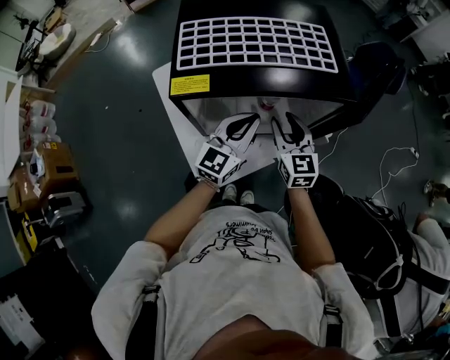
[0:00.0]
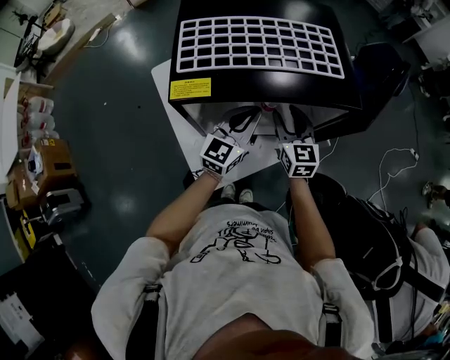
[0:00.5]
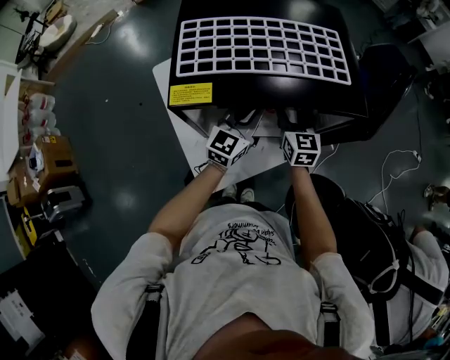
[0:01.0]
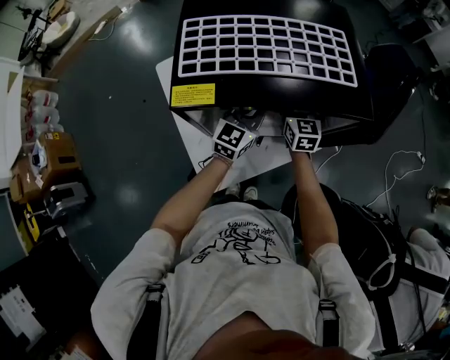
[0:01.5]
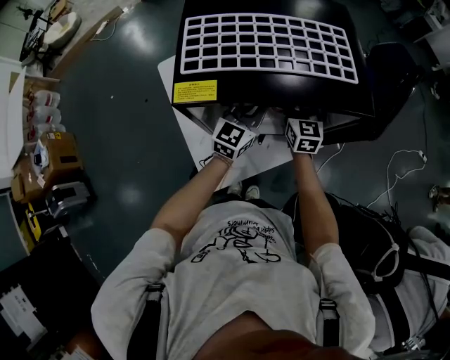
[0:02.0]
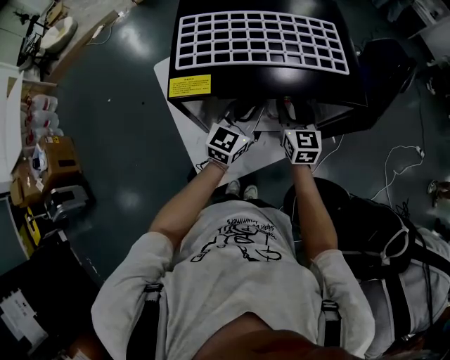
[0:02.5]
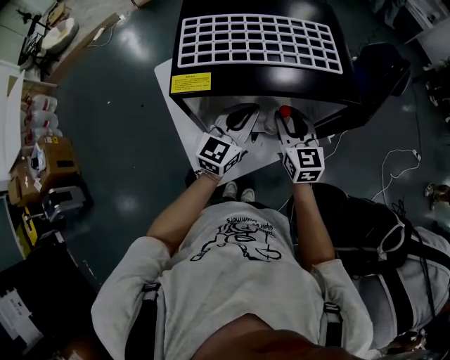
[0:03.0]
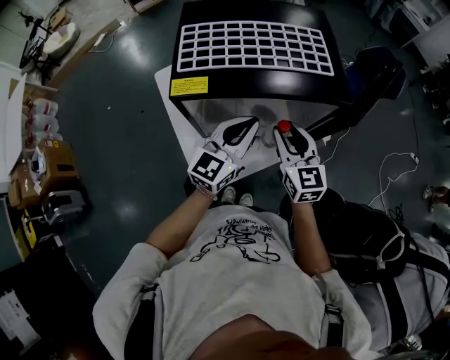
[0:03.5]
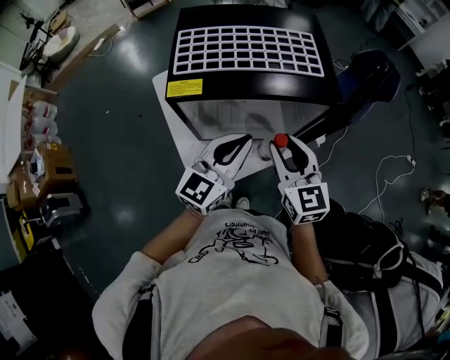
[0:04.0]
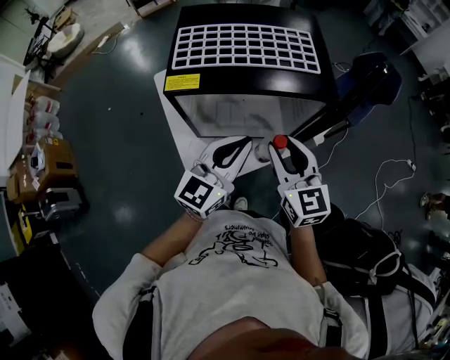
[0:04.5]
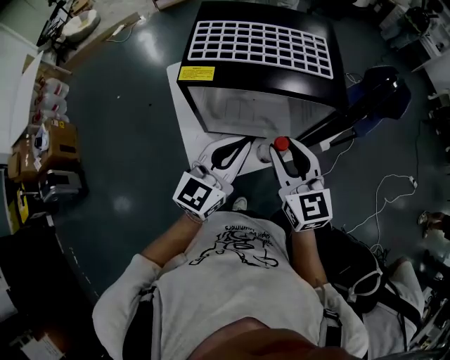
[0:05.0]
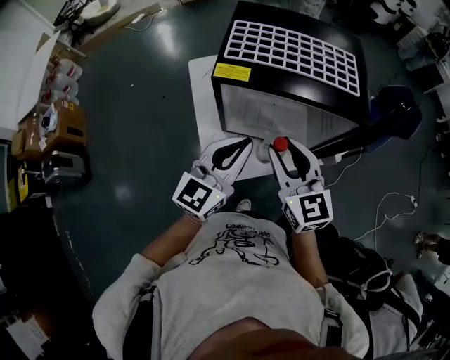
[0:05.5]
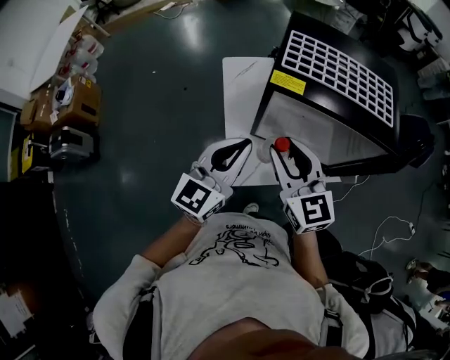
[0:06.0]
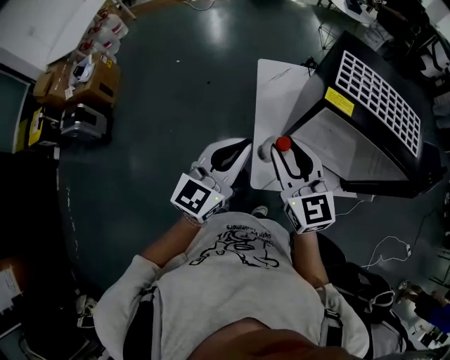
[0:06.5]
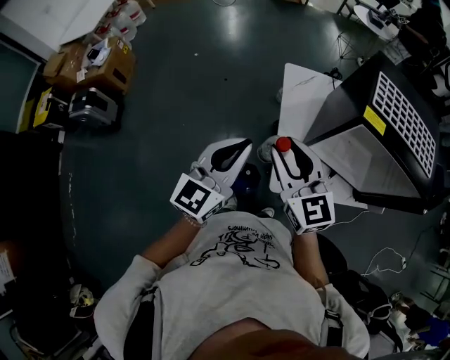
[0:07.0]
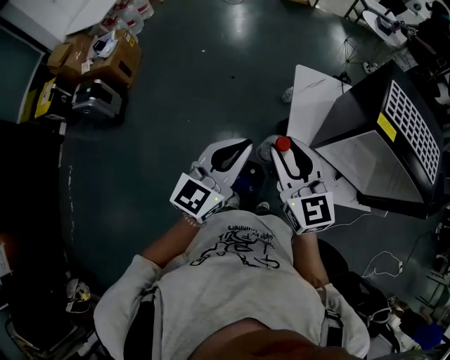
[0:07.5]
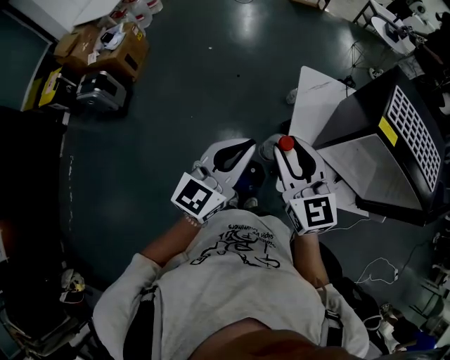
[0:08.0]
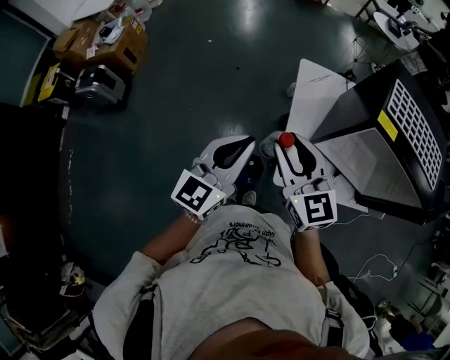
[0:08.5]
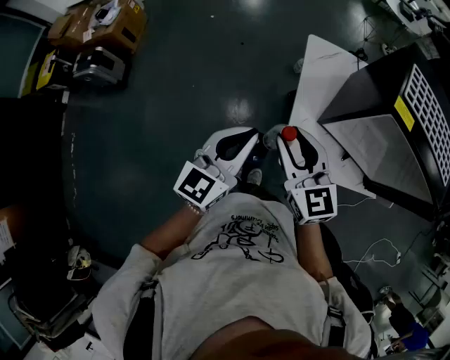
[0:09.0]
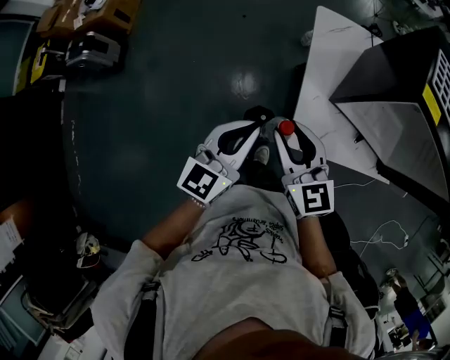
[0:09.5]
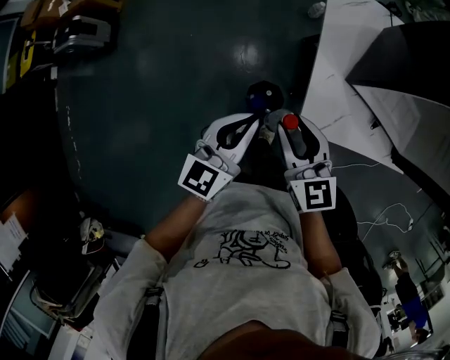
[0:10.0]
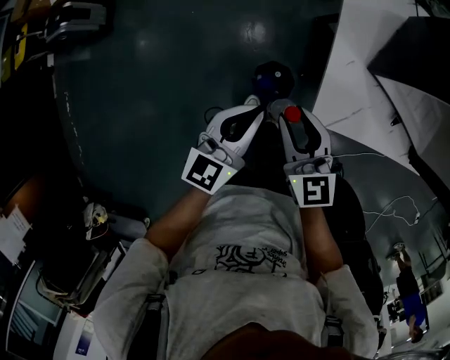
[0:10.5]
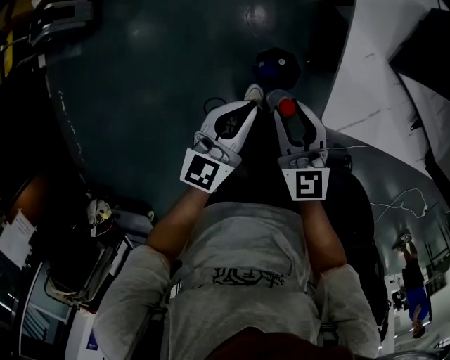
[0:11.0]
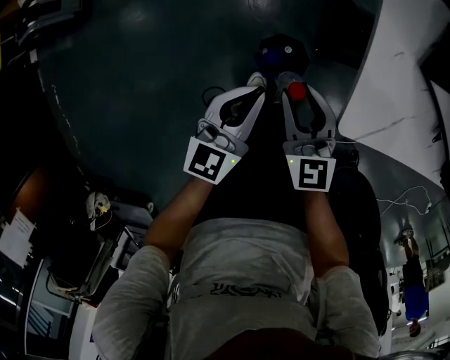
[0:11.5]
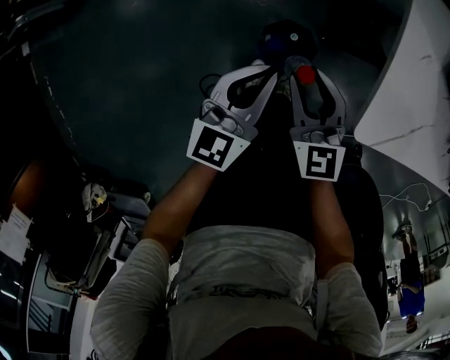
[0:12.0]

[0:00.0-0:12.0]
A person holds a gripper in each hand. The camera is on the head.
0:00.0 to 0:02.0: Both grippers travel together forward and downward, about 10 cm.
0:02.0 to 0:04.0: The grippers both shift backward and upward by approximately 20 cm.
0:04.0 to 0:06.0: Both grippers travel together to the left, some 20 cm. The left gripper changes its angle by some 20 degrees. The right gripper swivels approximately 20 degrees.
0:06.0 to 0:08.0: Both grippers move to the left, about 25 cm.
0:08.0 to 0:10.0: The two grippers go approximately 20 cm downward.
0:10.0 to 0:12.0: The grippers both shift downward by approximately 30 cm.

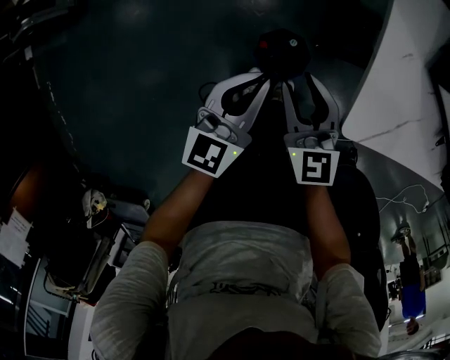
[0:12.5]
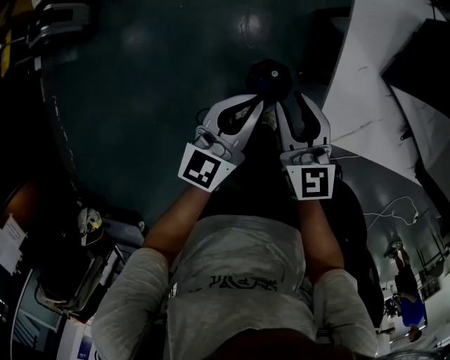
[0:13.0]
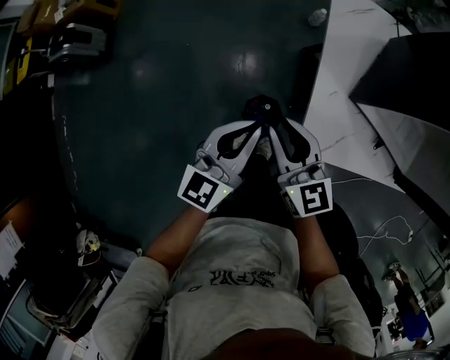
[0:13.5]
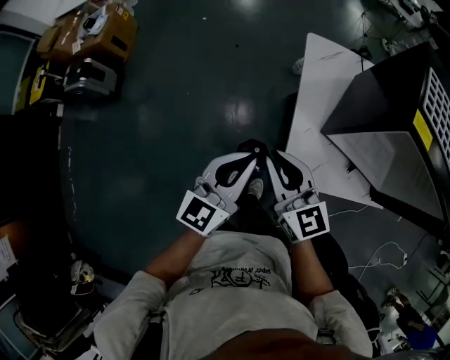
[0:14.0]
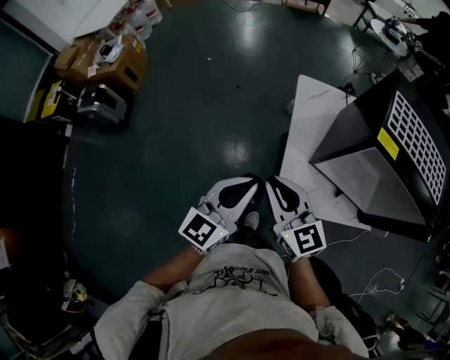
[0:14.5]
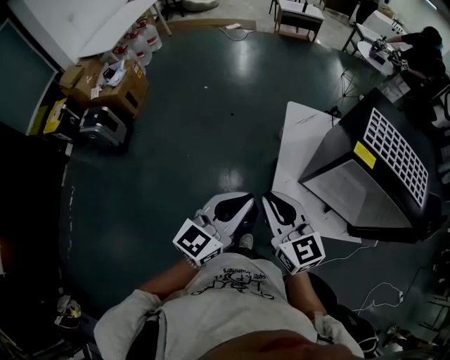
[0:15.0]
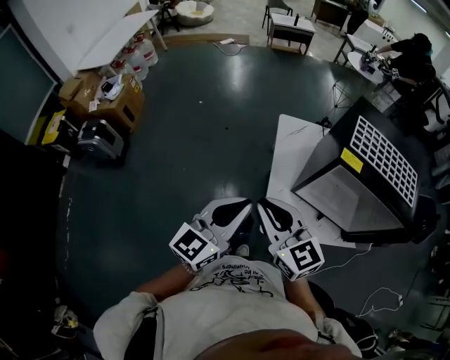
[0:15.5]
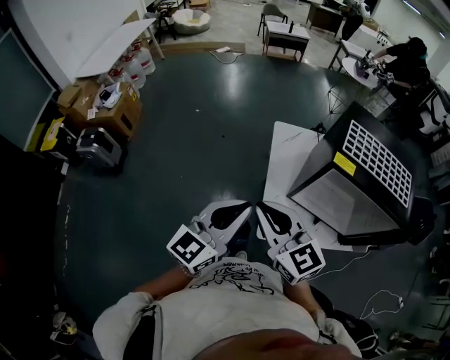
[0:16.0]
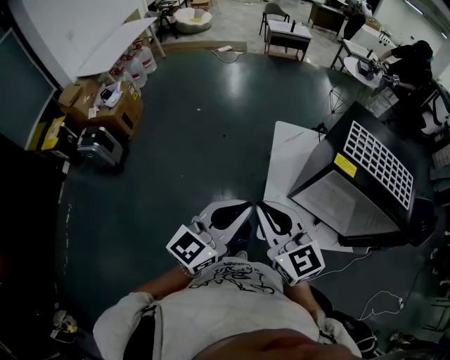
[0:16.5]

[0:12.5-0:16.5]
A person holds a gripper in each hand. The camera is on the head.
0:12.5 to 0:14.5: Both grippers travel together upward, some 40 cm. The right gripper closes up.
0:14.5 to 0:16.5: The grippers both shift upward by some 10 cm.

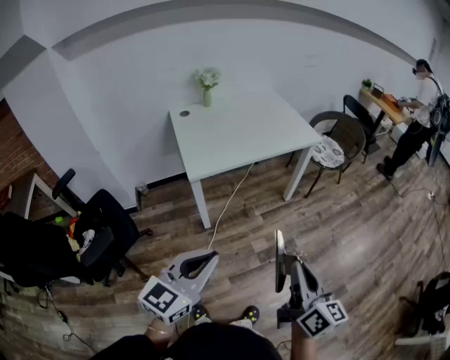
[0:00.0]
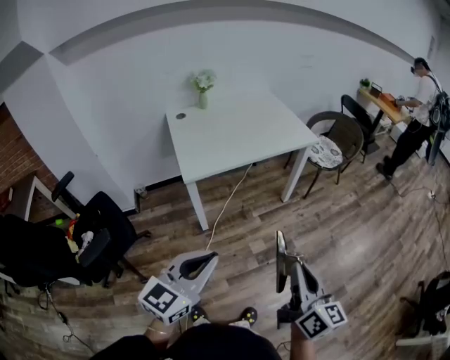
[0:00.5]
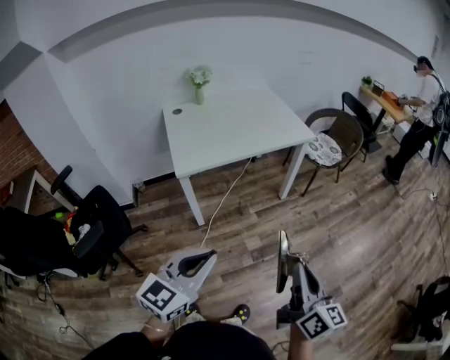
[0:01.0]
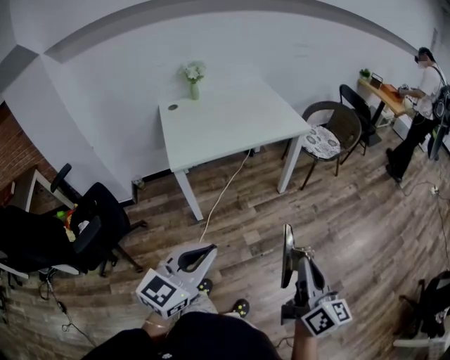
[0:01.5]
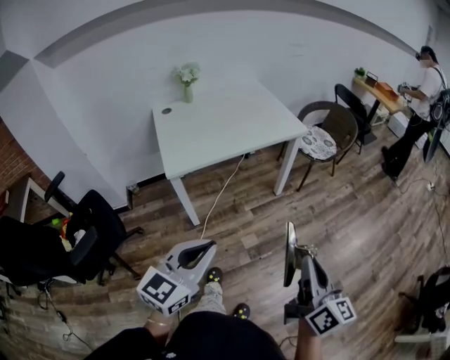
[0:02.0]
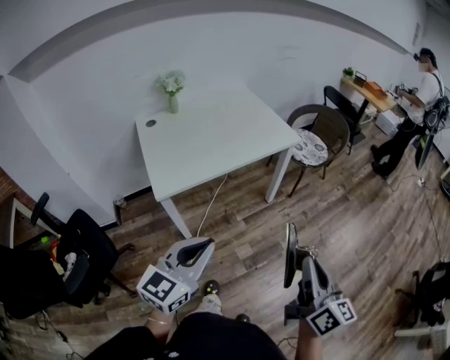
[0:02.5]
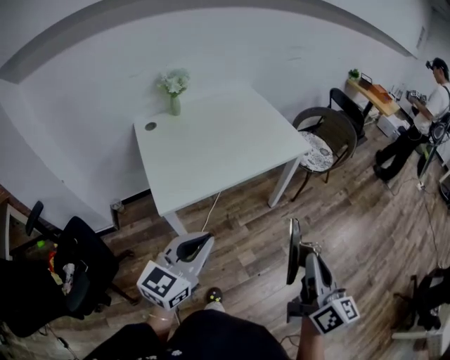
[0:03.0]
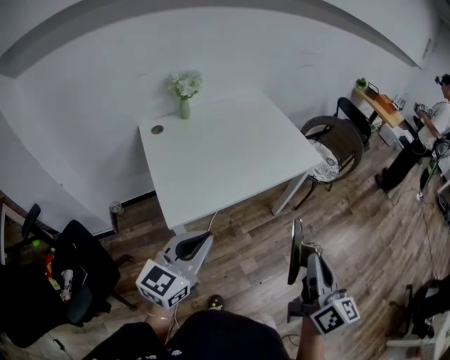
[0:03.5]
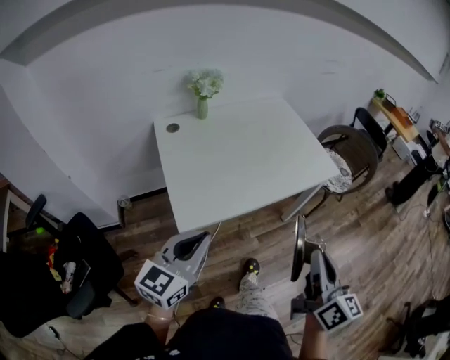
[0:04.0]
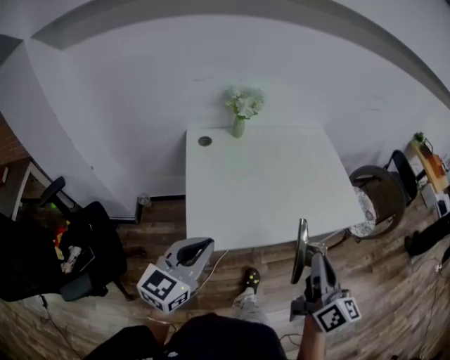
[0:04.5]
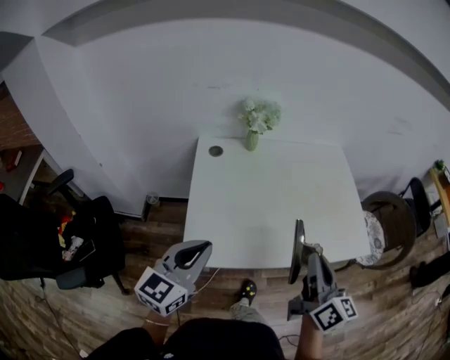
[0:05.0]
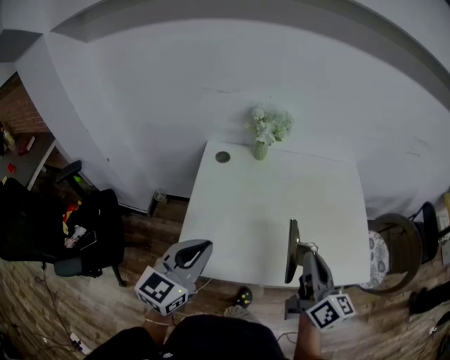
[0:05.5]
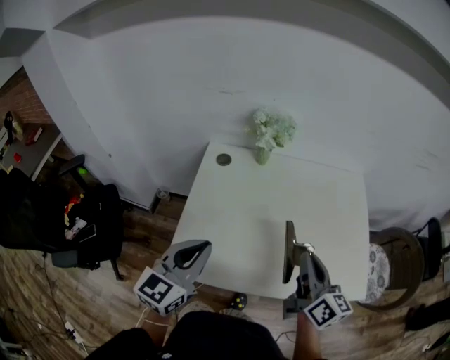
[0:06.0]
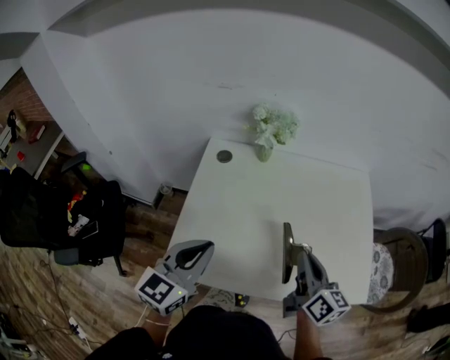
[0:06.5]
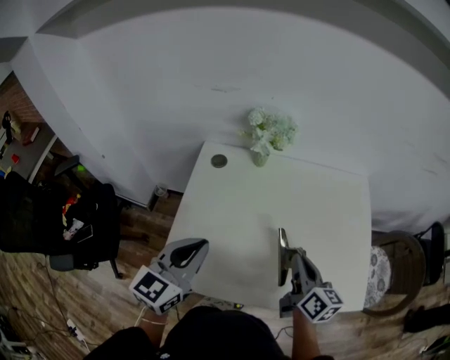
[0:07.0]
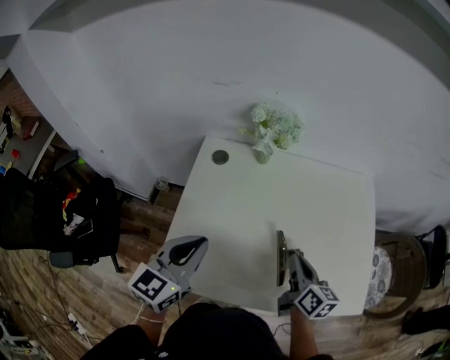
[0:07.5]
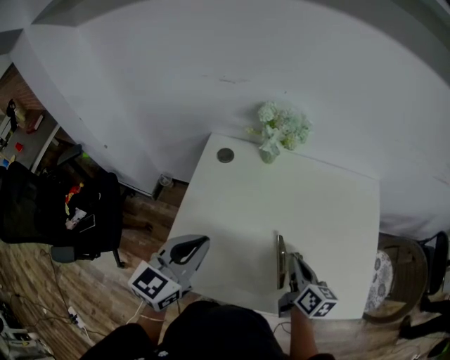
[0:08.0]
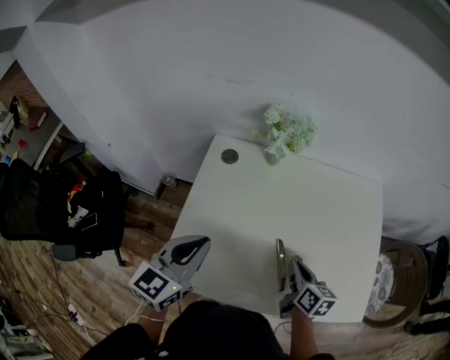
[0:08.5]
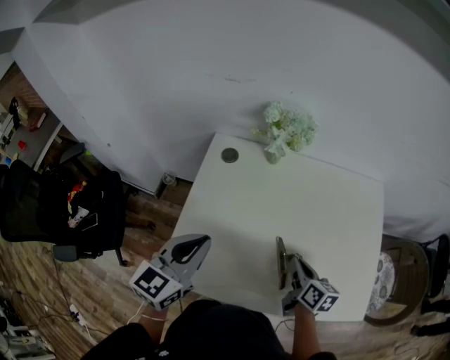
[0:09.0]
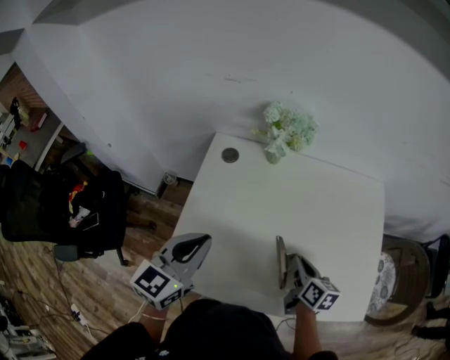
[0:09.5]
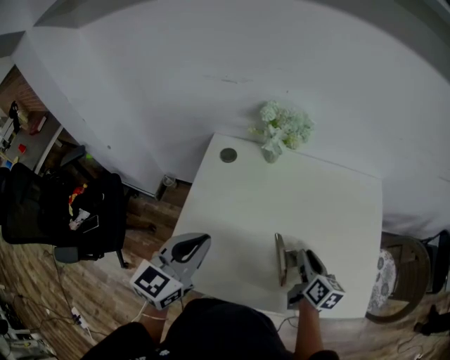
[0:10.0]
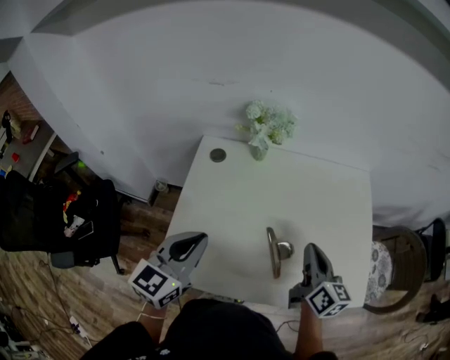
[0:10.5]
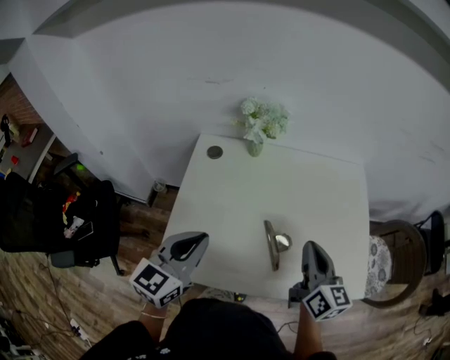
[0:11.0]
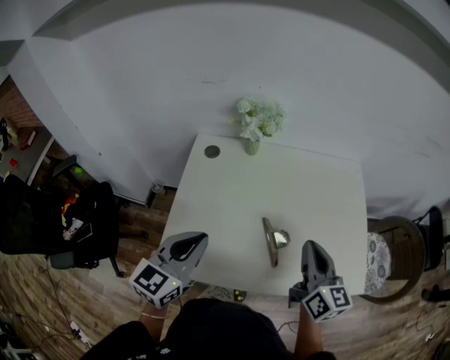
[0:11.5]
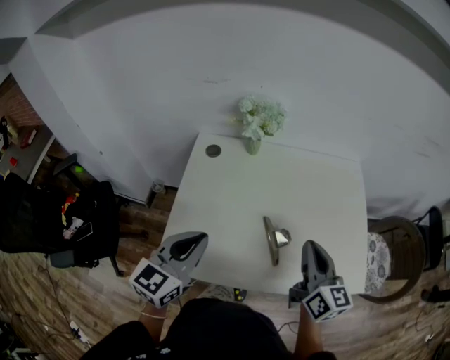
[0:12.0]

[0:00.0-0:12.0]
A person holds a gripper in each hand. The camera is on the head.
0:00.0 to 0:02.0: The left gripper heads to the right and forward, covering about 10 cm; the right gripper shifts some 10 cm to the right.
0:02.0 to 0:04.0: The grippers both shift forward and to the left by about 35 cm.
0:04.0 to 0:06.0: The right gripper shifts by roughly 40 cm, and changes its angle by roughly 40 degrees. Meanwhile the left gripper changes place by roughly 20 cm, and swivels approximately 30 degrees.
0:06.0 to 0:08.0: The left gripper goes roughly 10 cm forward; the right gripper travels downward and forward by about 15 cm, and rotates some 20 degrees.
0:08.0 to 0:10.0: The right gripper opens up.
0:10.0 to 0:12.0: The right gripper moves upward and backward, approximately 15 cm, rotates some 30 degrees, and closes its fingers. The left gripper travels backward by approximately 5 cm.
